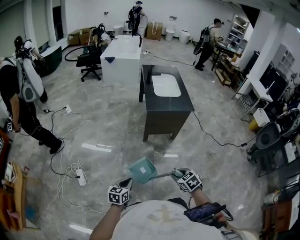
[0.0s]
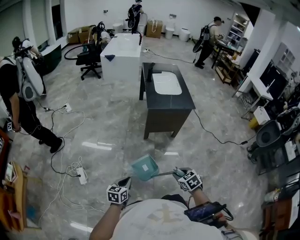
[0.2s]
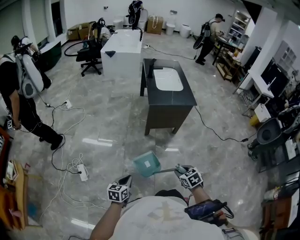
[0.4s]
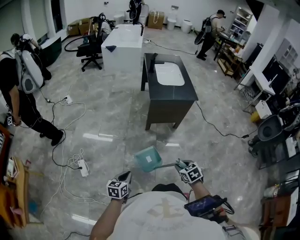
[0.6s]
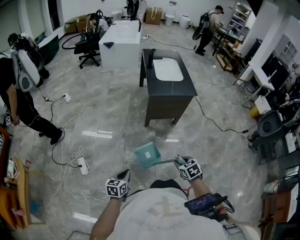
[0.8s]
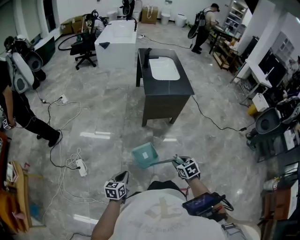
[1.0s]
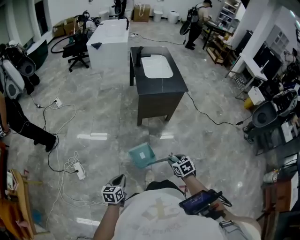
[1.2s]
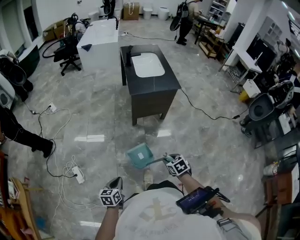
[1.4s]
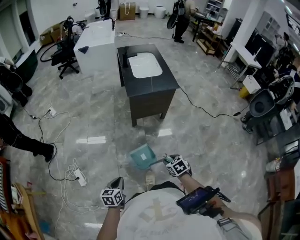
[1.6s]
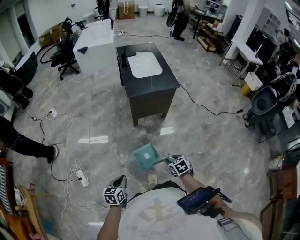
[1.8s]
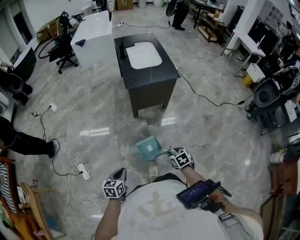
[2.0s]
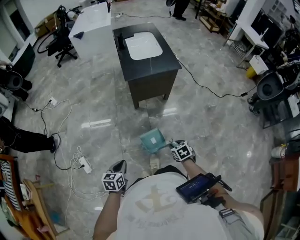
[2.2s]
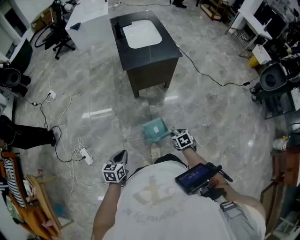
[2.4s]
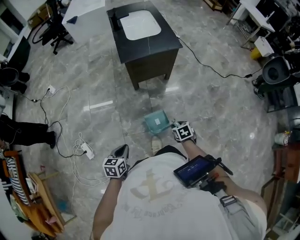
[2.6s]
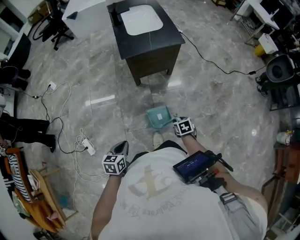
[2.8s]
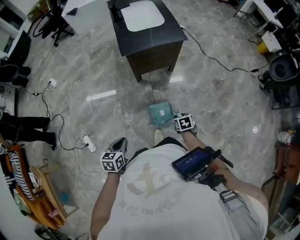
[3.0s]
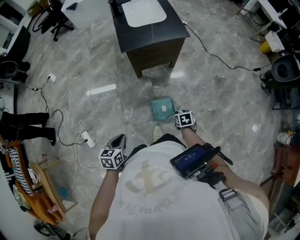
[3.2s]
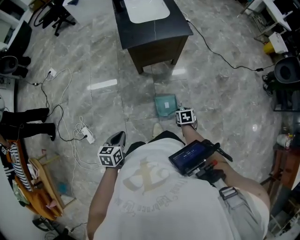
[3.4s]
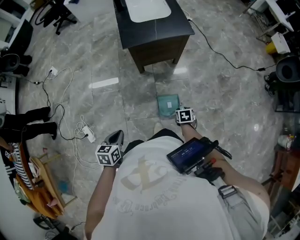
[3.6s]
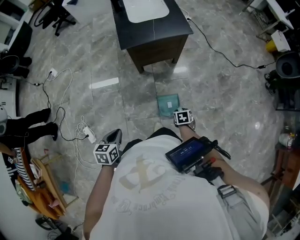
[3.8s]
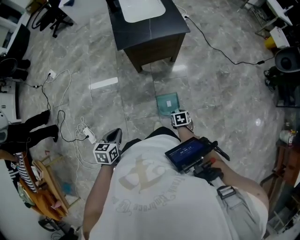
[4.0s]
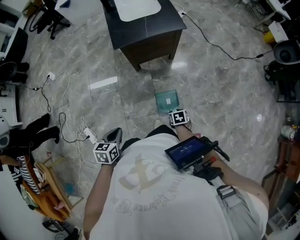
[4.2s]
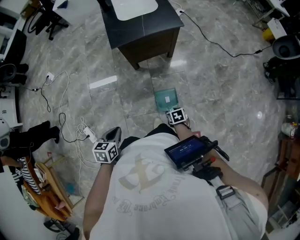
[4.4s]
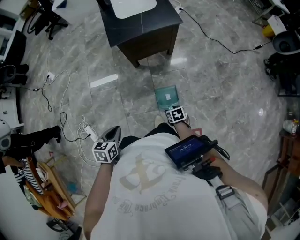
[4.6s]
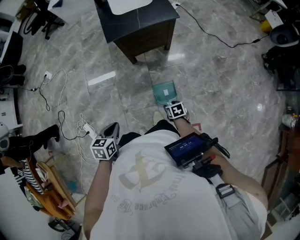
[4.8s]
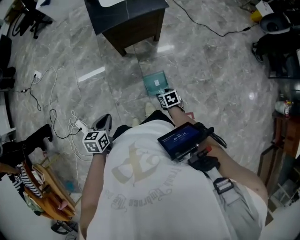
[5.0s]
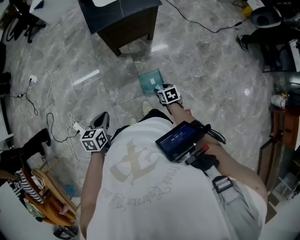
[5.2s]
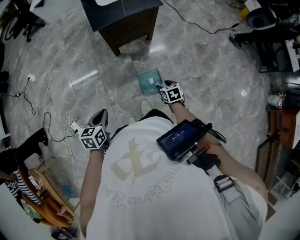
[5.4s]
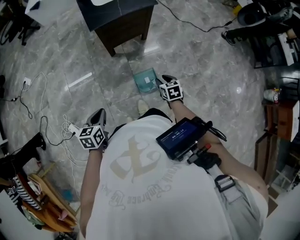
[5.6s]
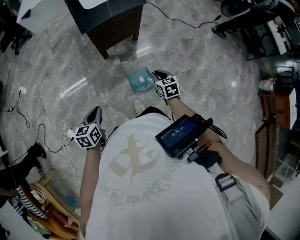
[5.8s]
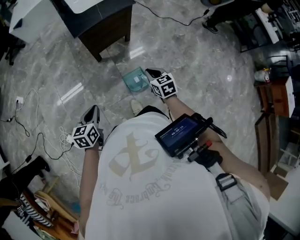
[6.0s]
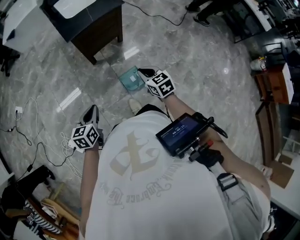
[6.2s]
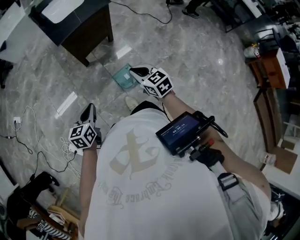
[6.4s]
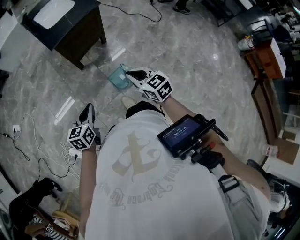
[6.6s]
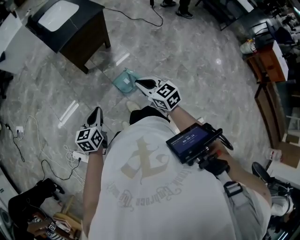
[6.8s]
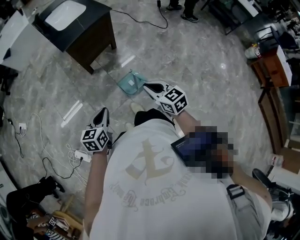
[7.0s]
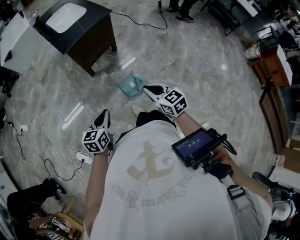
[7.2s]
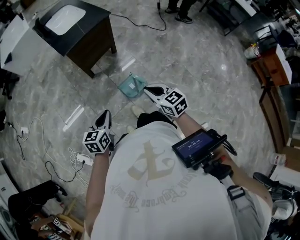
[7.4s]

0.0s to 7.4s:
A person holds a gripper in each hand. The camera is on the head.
0.0s to 1.4s: The right gripper goes about 5 cm downward, while the left gripper ends up approximately 5 cm from where it was.
1.4s to 3.0s: The right gripper moves downward, to the right and forward, some 20 cm, and turns by some 20 degrees, while the left gripper heads forward and to the right, covering approximately 15 cm.
3.0s to 4.4s: The right gripper is displaced downward by about 5 cm, and opens its fingers.
4.4s to 6.0s: The right gripper is displaced upward by approximately 20 cm, rotates roughly 30 degrees, and closes.
6.0s to 7.4s: The left gripper travels to the right by some 5 cm. The right gripper shifts roughly 15 cm backward and upward.

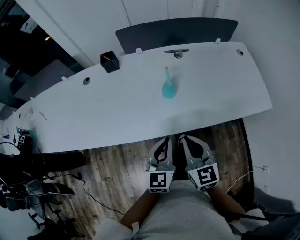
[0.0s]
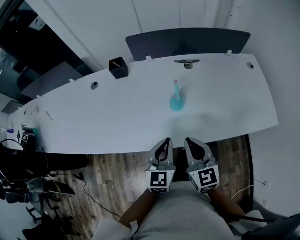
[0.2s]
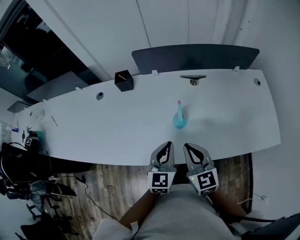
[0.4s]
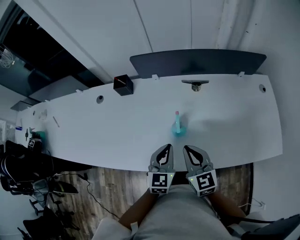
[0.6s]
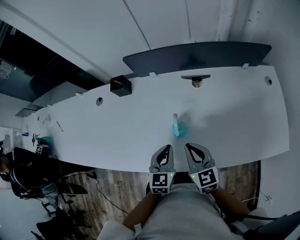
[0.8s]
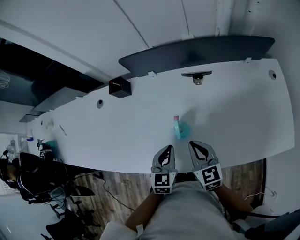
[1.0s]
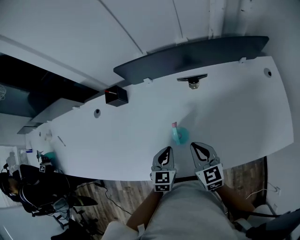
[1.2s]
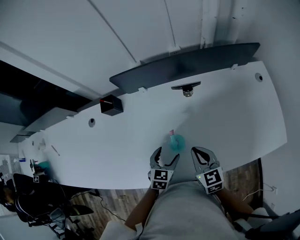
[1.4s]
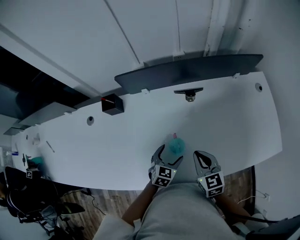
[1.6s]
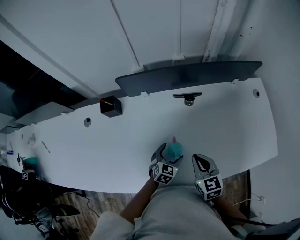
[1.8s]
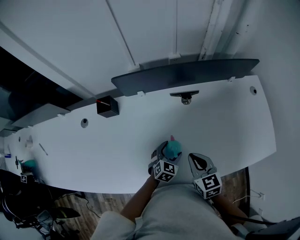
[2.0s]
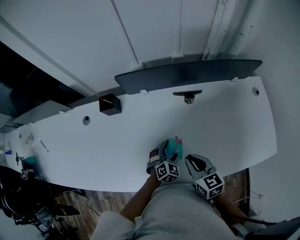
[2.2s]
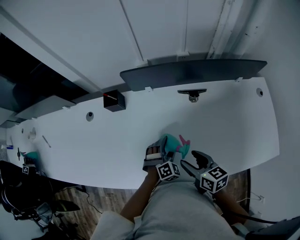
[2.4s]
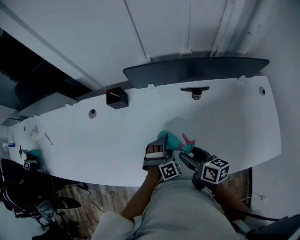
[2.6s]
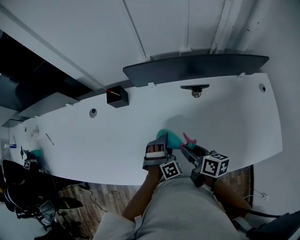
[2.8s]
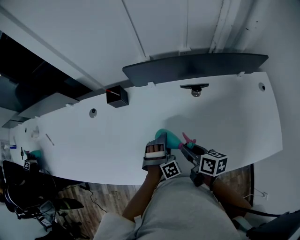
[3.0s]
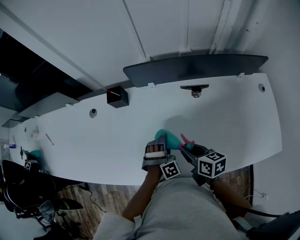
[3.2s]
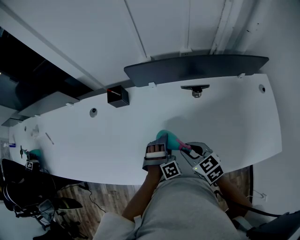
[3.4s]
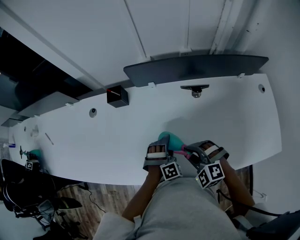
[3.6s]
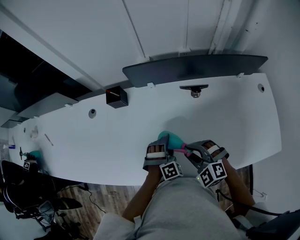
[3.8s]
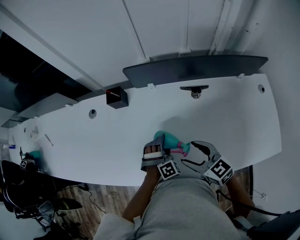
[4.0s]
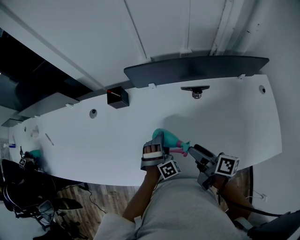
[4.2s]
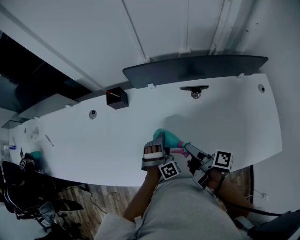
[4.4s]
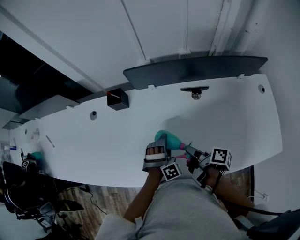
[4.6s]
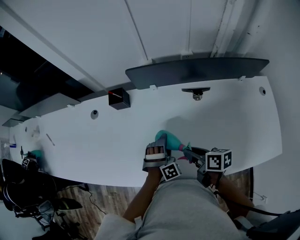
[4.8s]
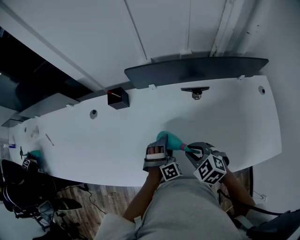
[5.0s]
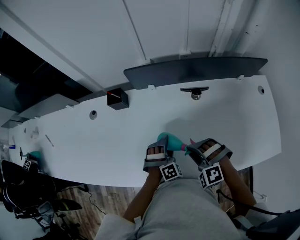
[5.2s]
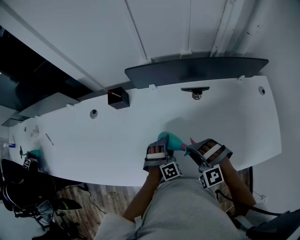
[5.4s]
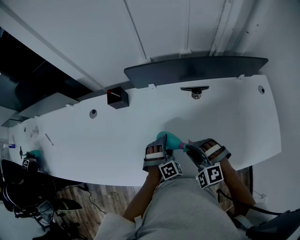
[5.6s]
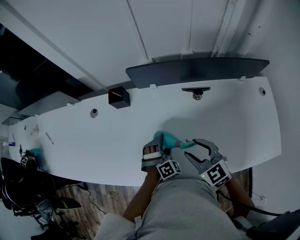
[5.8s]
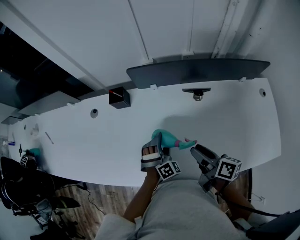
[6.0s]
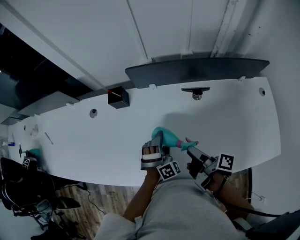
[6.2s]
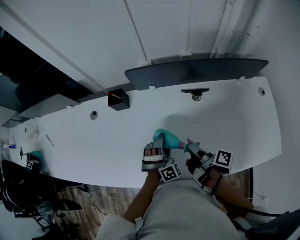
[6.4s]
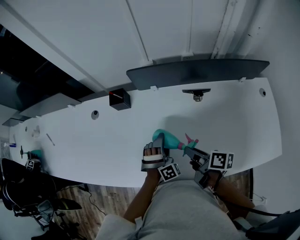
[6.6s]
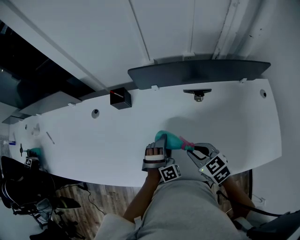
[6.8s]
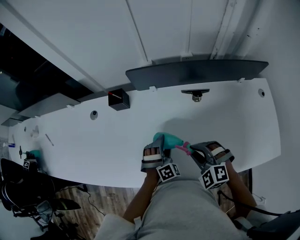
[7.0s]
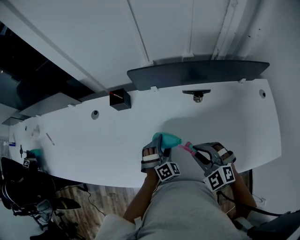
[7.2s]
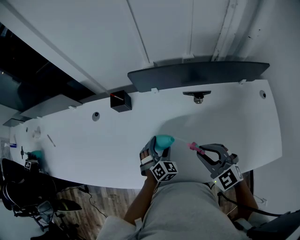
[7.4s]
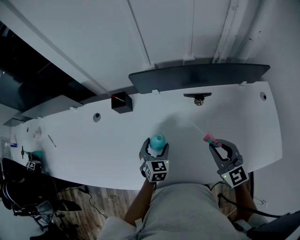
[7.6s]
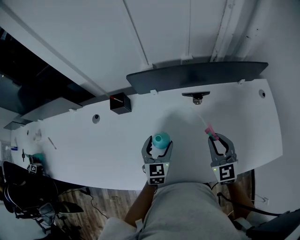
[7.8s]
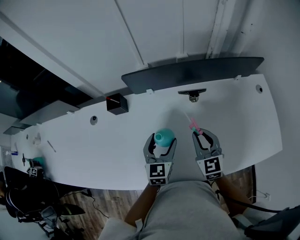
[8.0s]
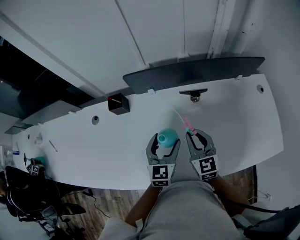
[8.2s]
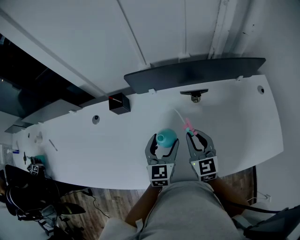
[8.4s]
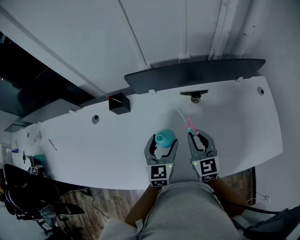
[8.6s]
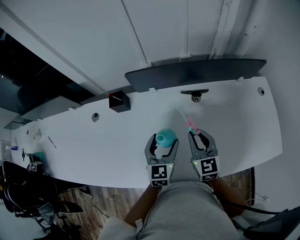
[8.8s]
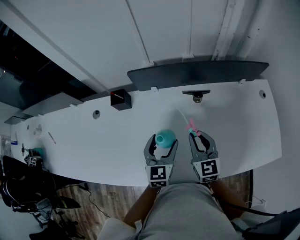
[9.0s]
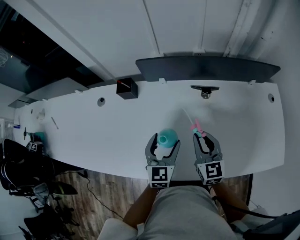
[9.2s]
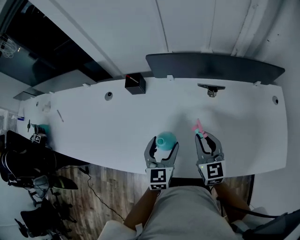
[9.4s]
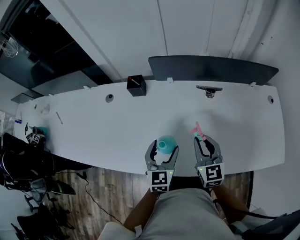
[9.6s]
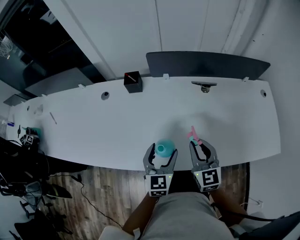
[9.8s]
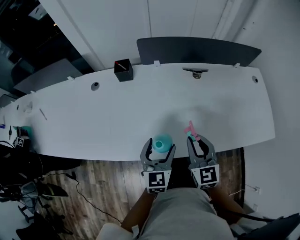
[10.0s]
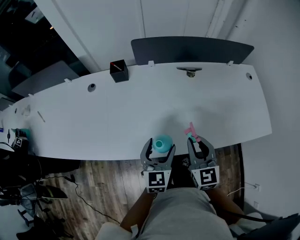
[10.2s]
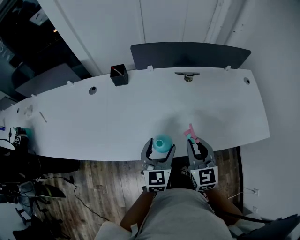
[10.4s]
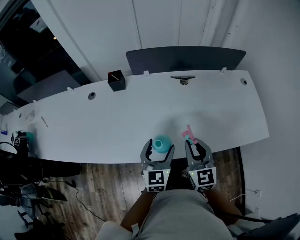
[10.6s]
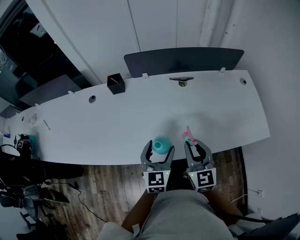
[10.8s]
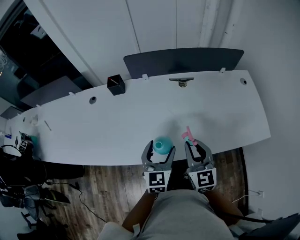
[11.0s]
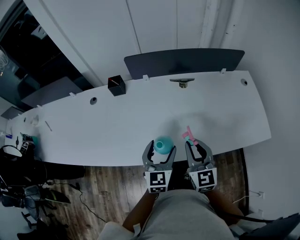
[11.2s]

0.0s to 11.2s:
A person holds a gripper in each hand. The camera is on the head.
0.0s to 1.6s: The right gripper moves forward, roughly 20 cm. Meanwhile the left gripper goes some 30 cm forward and downward, swivels some 30 degrees, and opens its fingers.
1.6s to 3.2s: The right gripper ends up approximately 10 cm from where it was, rotates about 30 degrees, and opens and closes again, while the left gripper shifts by approximately 5 cm, and rotates around the line of its fingers by roughly 50 degrees, clockwise from behind.
3.2s to 4.8s: The right gripper opens, then closes again.
4.8s to 6.4s: The right gripper rolls clockwise, seen from behind, by about 40 degrees.
6.4s to 8.0s: The right gripper shifts by roughly 10 cm, and rotates around the line of its fingers by approximately 100 degrees, counterclockwise from behind, while the left gripper moves upward, about 10 cm, and rolls counterclockwise, seen from behind, by approximately 70 degrees.
8.0s to 9.6s: Both grippers move backward and to the left, approximately 10 cm.
9.6s to 11.2s: The left gripper is displaced backward and to the right by about 10 cm; the right gripper goes roughly 15 cm backward.

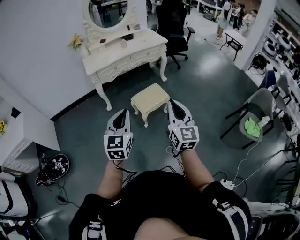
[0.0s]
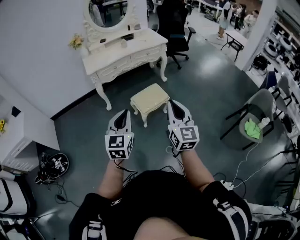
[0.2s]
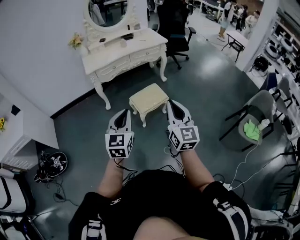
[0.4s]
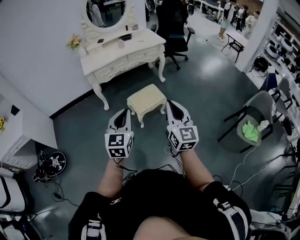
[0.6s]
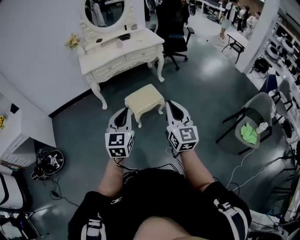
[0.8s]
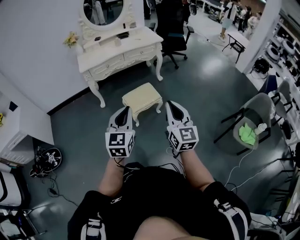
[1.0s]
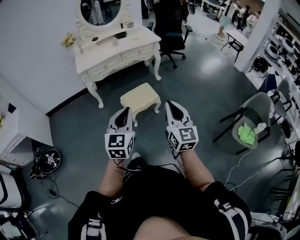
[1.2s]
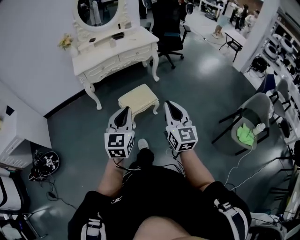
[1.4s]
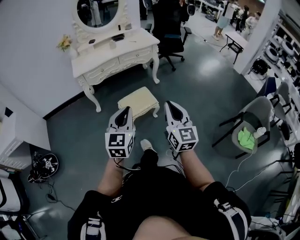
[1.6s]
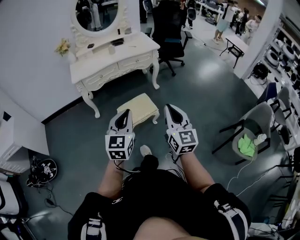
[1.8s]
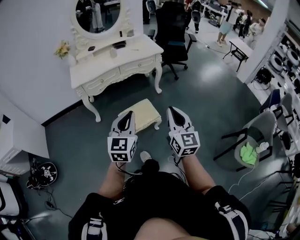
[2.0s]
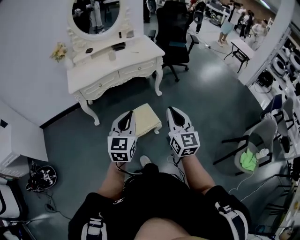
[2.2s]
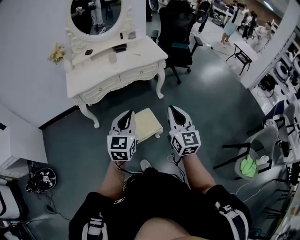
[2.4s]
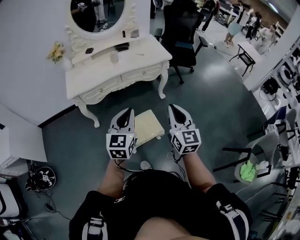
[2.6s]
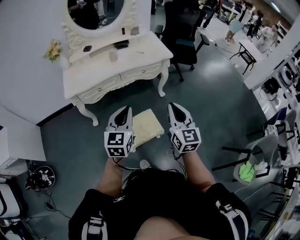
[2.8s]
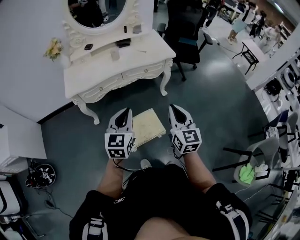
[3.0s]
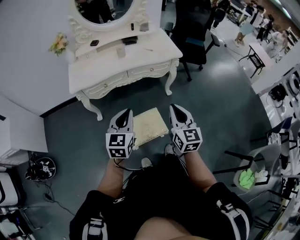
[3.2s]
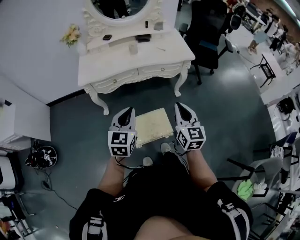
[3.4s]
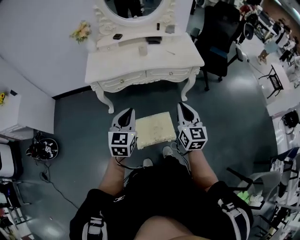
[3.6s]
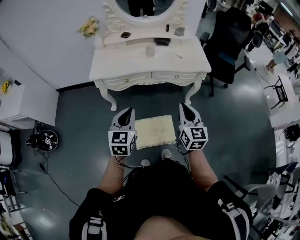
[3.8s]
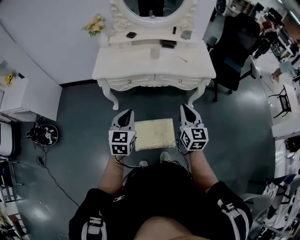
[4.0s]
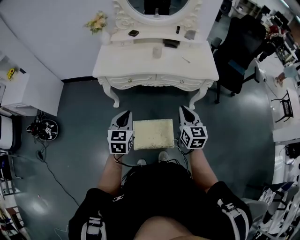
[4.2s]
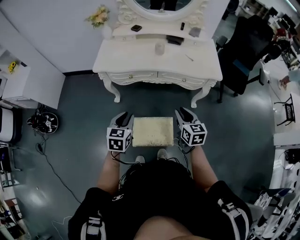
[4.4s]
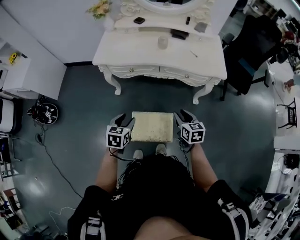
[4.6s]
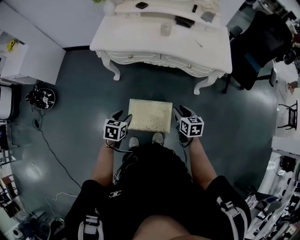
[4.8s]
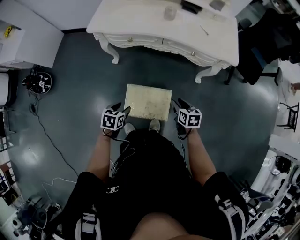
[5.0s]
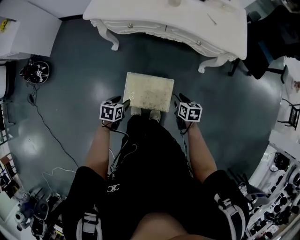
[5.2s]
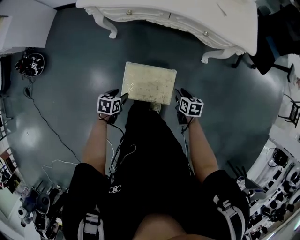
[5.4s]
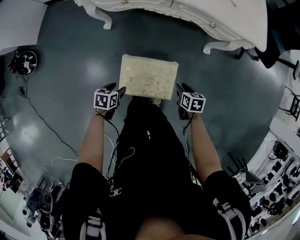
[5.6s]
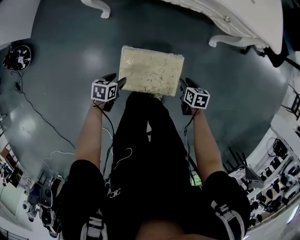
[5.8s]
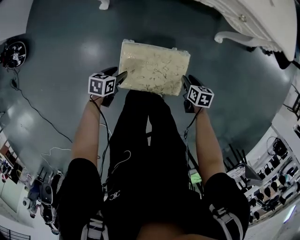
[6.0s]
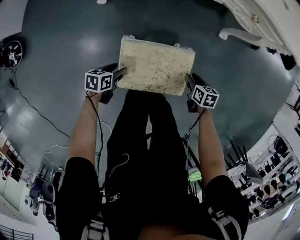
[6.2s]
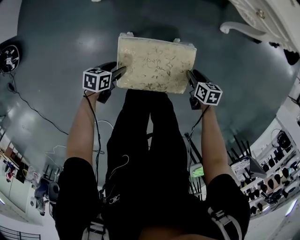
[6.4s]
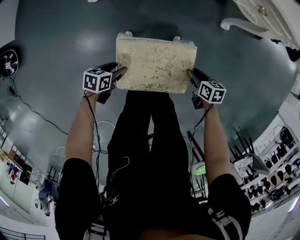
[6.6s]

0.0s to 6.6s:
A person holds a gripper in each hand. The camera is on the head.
0.0s to 1.6s: The two grippers go about 15 cm to the right and forward.
1.6s to 3.2s: Both grippers are carried forward, approximately 40 cm.
3.2s to 5.0s: Both grippers travel together downward, approximately 30 cm. The right gripper points its fingers some 40 degrees further downward, and opens up; the left gripper angles its fingers downward, by some 40 degrees, and opens its fingers.
5.0s to 6.6s: The two grippers go about 35 cm downward. The left gripper turns by approximately 30 degrees; the right gripper turns by approximately 20 degrees.
